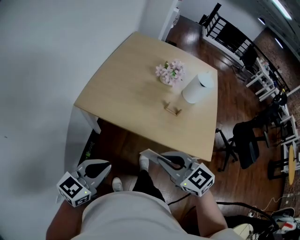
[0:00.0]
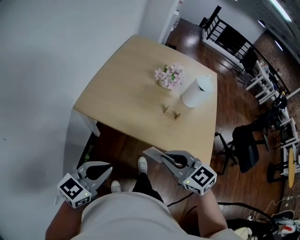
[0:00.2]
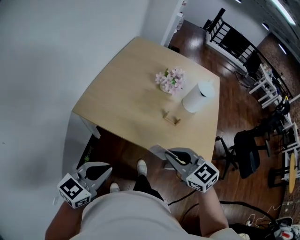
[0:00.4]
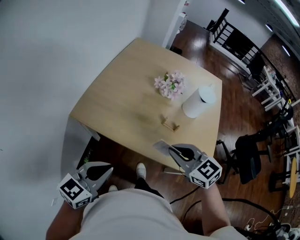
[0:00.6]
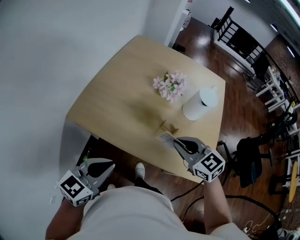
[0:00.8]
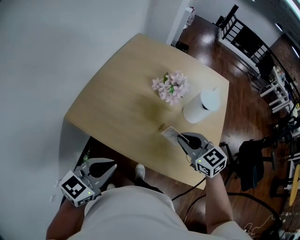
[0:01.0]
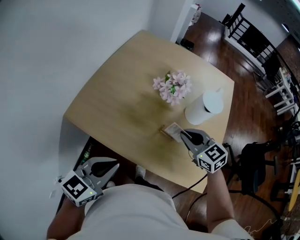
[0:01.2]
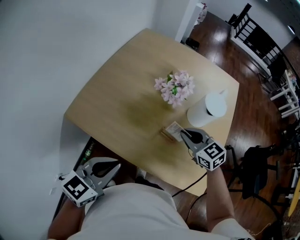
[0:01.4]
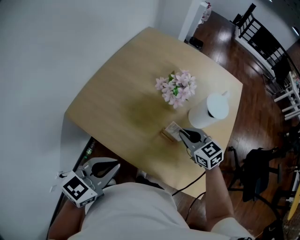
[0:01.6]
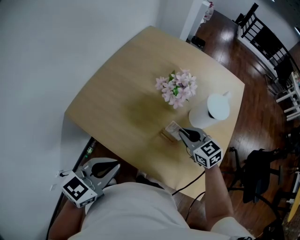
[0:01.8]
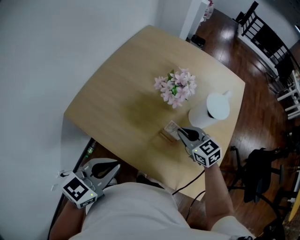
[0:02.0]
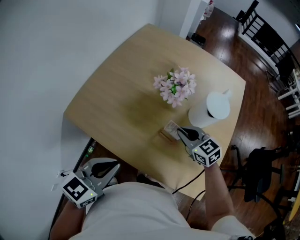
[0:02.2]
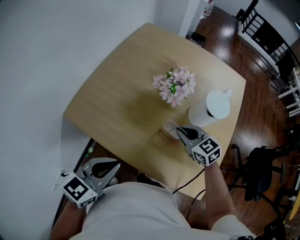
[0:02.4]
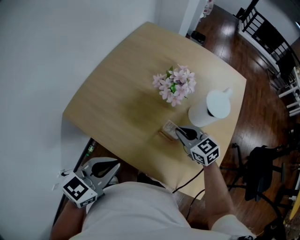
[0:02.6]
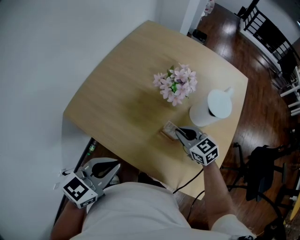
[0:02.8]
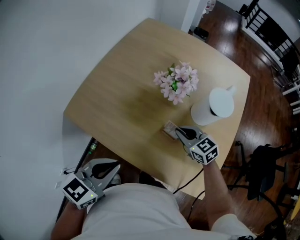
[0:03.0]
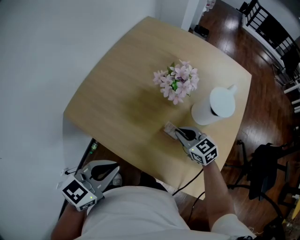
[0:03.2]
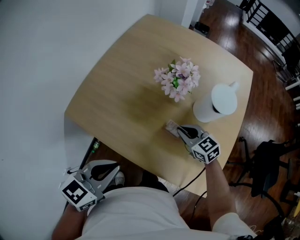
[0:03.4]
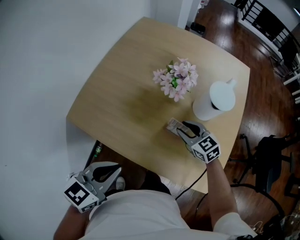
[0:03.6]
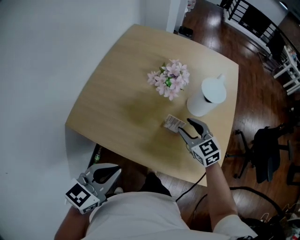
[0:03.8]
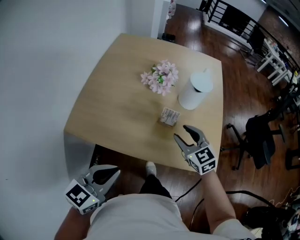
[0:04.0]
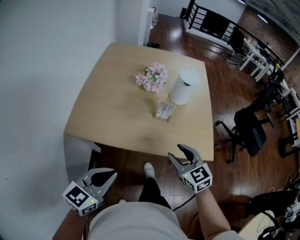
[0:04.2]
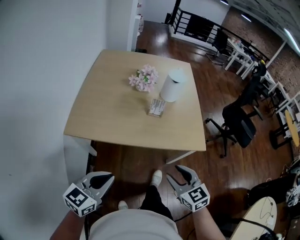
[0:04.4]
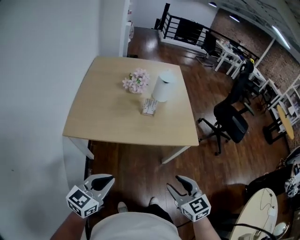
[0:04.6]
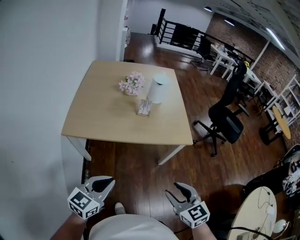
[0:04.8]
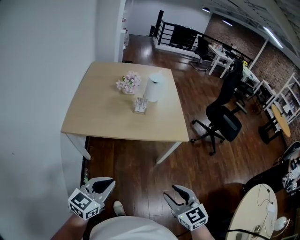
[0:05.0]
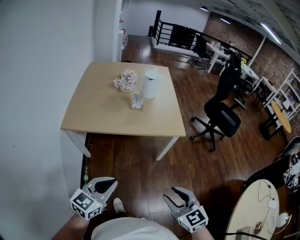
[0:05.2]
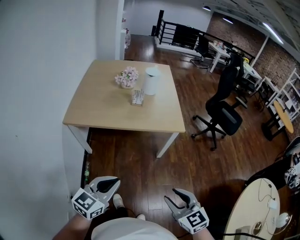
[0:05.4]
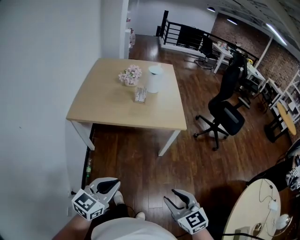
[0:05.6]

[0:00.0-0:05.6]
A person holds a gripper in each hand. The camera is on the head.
0:00.0 to 0:01.4: The left gripper heads forward and to the right, covering roughly 25 cm, while the right gripper shifts approximately 35 cm forward and to the right.
0:01.4 to 0:02.8: The right gripper travels downward by approximately 5 cm.
0:02.8 to 0:04.2: The left gripper moves some 20 cm. The right gripper shifts by approximately 30 cm, turns by roughly 30 degrees, and opens up.
0:04.2 to 0:05.6: The right gripper shifts roughly 50 cm backward; the left gripper heads backward and to the right, covering some 30 cm.

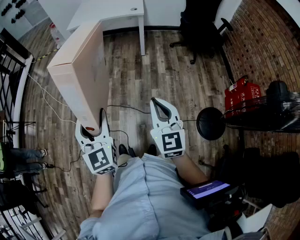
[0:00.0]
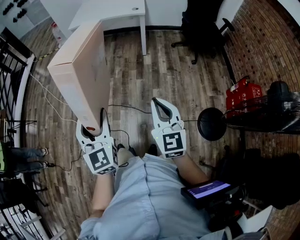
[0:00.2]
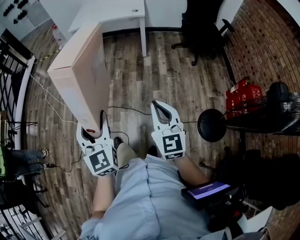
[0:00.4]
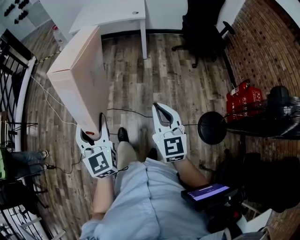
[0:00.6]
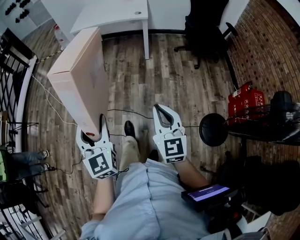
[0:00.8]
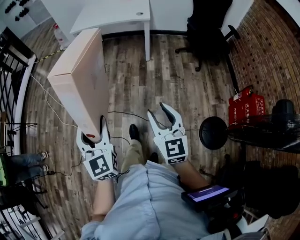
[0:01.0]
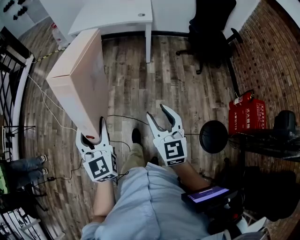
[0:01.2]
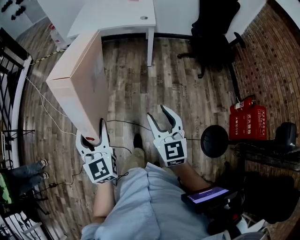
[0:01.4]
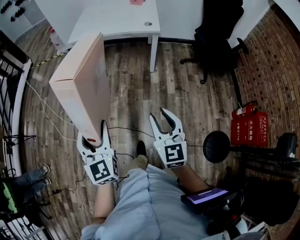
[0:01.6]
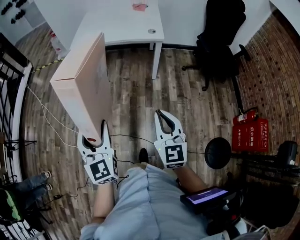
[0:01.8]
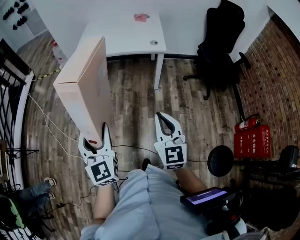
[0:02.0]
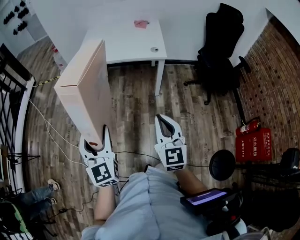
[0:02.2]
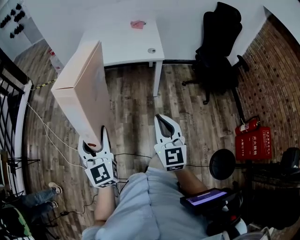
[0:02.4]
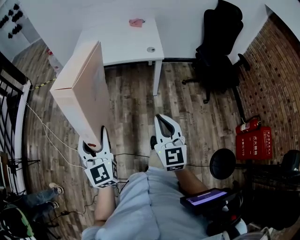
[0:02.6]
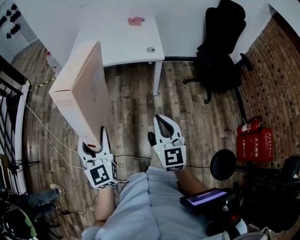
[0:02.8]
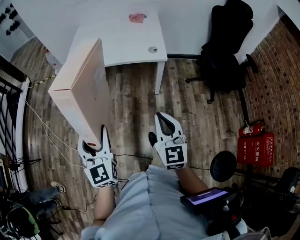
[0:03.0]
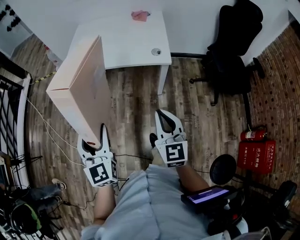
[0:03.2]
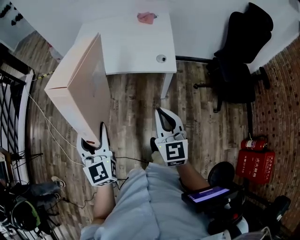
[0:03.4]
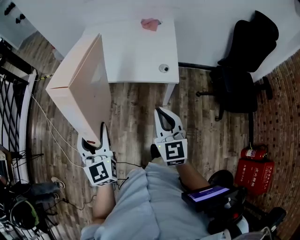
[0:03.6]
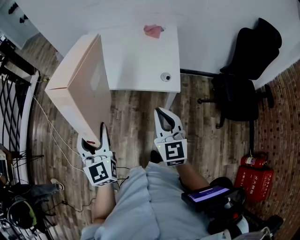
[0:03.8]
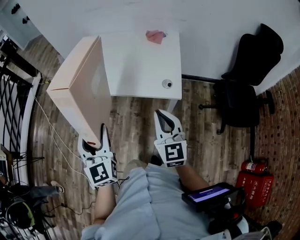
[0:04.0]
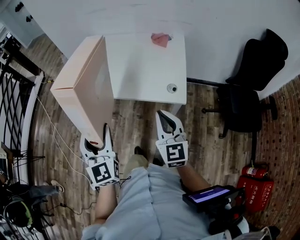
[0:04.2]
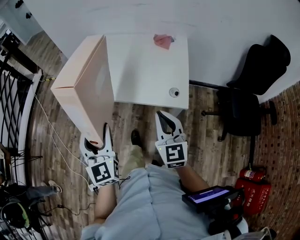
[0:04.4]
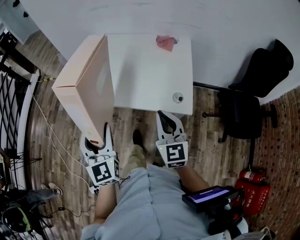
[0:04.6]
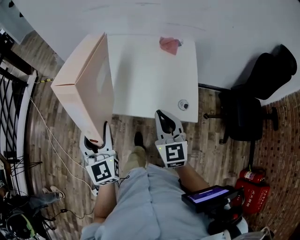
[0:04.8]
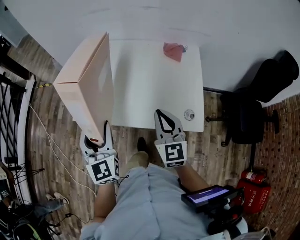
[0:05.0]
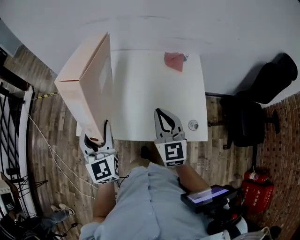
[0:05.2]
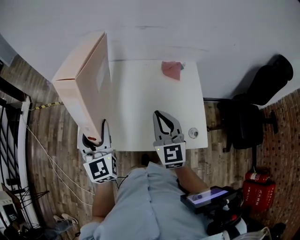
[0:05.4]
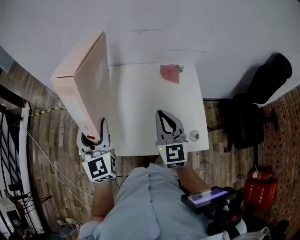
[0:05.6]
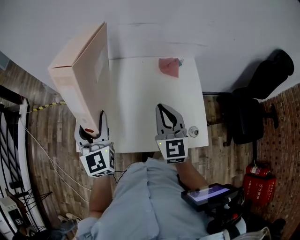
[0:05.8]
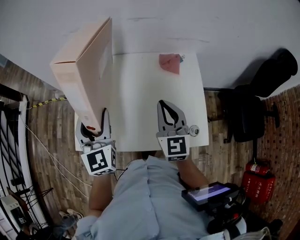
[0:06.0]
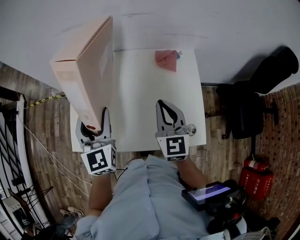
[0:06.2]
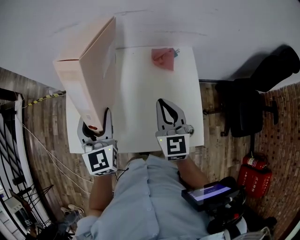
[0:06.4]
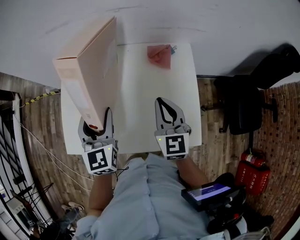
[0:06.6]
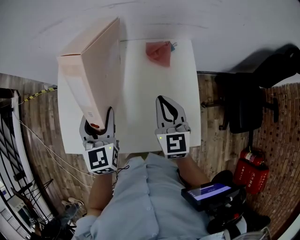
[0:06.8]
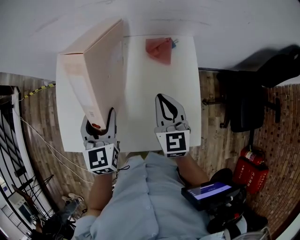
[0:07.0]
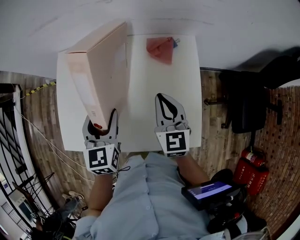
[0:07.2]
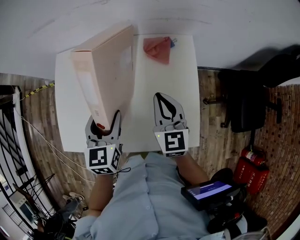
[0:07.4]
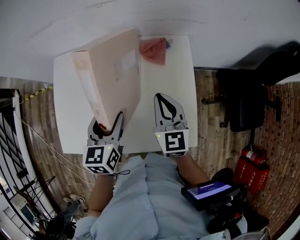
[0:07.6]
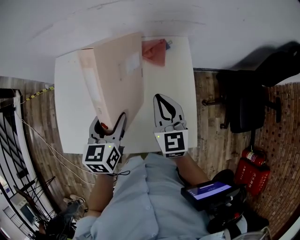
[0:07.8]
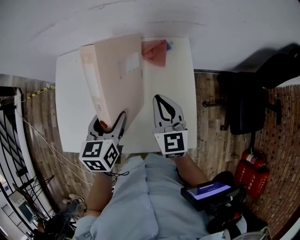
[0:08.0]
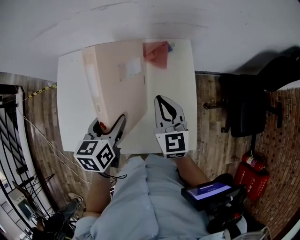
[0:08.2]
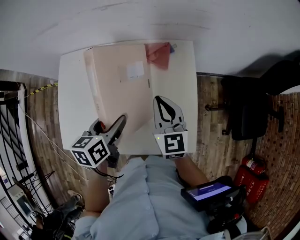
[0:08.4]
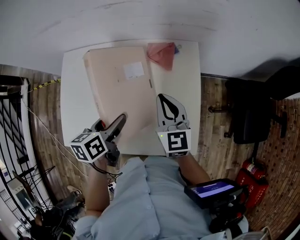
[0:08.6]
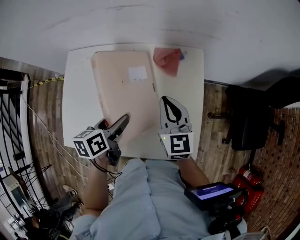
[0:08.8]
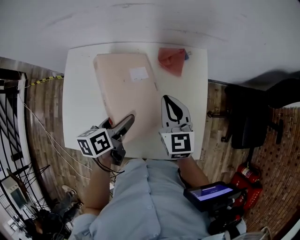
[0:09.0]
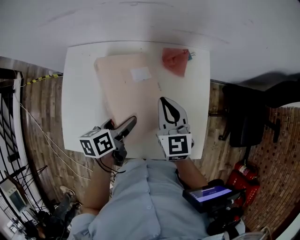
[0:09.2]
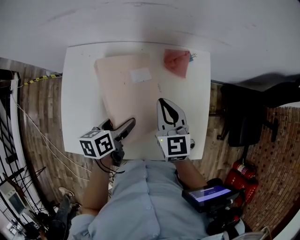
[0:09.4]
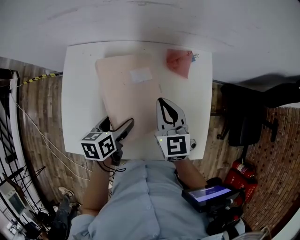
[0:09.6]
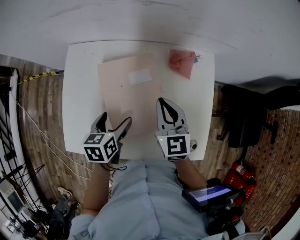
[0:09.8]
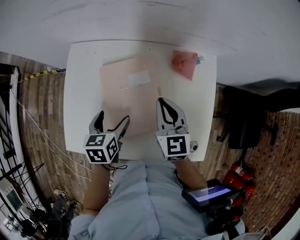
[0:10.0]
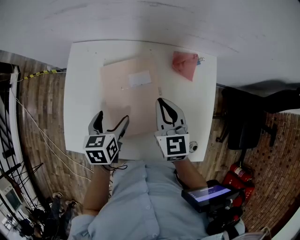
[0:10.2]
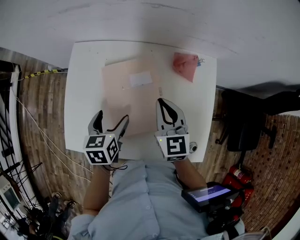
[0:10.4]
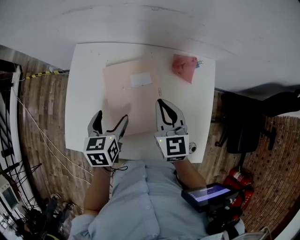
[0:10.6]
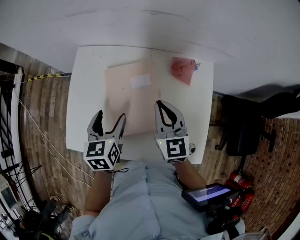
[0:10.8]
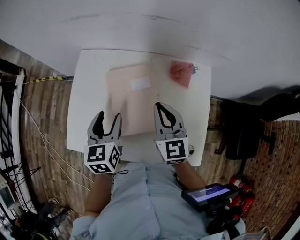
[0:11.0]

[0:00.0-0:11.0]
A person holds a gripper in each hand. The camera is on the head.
0:00.0 to 0:01.6: The two grippers go about 25 cm forward. The right gripper opens.
0:01.6 to 0:03.2: Both grippers travel together forward, roughly 35 cm. The right gripper closes.
0:03.2 to 0:04.8: Both grippers move forward, roughly 35 cm.
0:04.8 to 0:06.2: Both grippers travel together forward, about 25 cm.
0:06.2 to 0:07.8: The left gripper shifts approximately 20 cm to the right and downward, and swivels about 40 degrees; the right gripper moves to the right, downward and forward, roughly 10 cm.
0:07.8 to 0:09.4: The right gripper shifts some 10 cm to the left; the left gripper shifts about 10 cm downward and to the left, and rotates approximately 30 degrees.
0:09.4 to 0:11.0: The right gripper moves approximately 5 cm. The left gripper moves upward and to the left, some 10 cm, and turns by roughly 40 degrees.

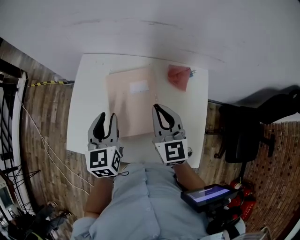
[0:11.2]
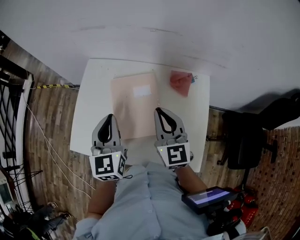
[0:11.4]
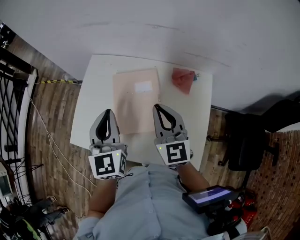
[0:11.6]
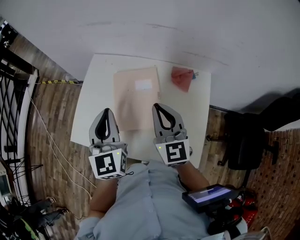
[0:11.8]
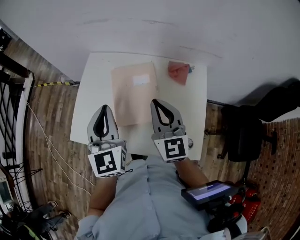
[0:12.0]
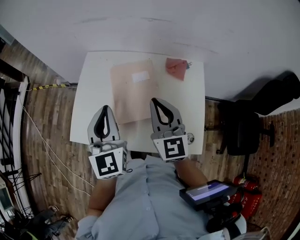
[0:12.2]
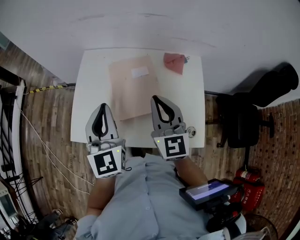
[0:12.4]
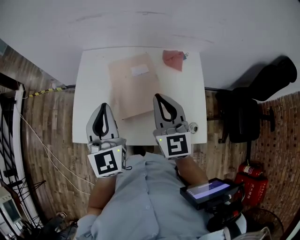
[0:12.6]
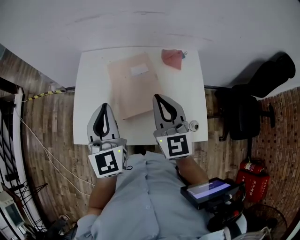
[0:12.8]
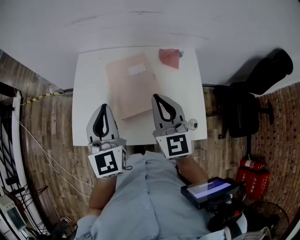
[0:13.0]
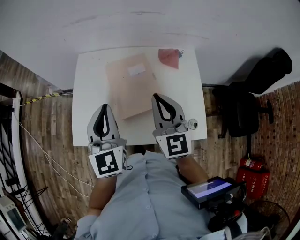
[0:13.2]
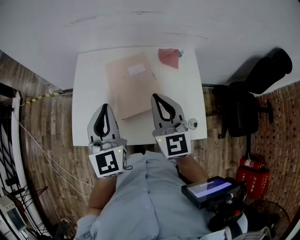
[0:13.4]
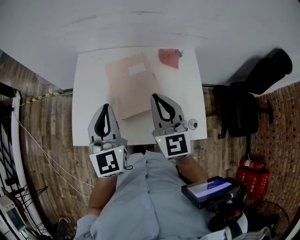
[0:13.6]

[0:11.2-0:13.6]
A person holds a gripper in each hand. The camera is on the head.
0:11.2 to 0:12.4: The left gripper goes about 10 cm upward and backward, and rotates approximately 20 degrees; the right gripper is displaced backward and upward by approximately 10 cm.
0:12.4 to 0:13.6: The grippers move only a little.

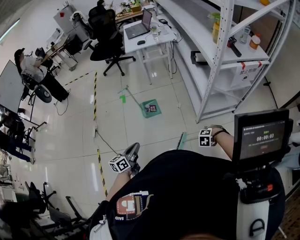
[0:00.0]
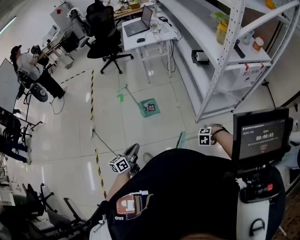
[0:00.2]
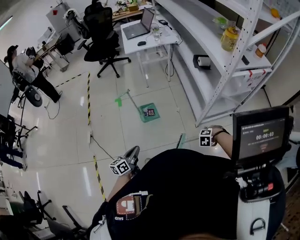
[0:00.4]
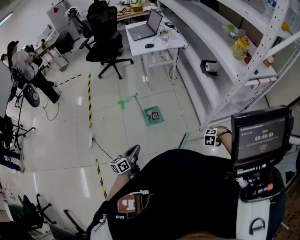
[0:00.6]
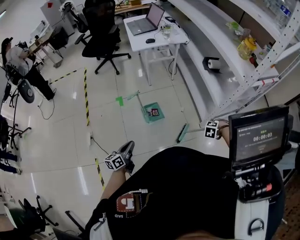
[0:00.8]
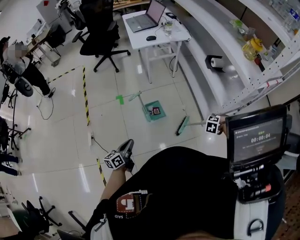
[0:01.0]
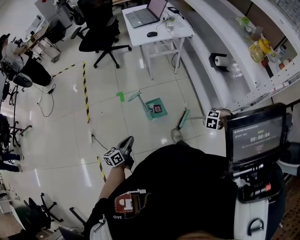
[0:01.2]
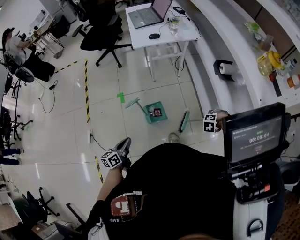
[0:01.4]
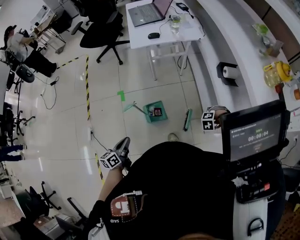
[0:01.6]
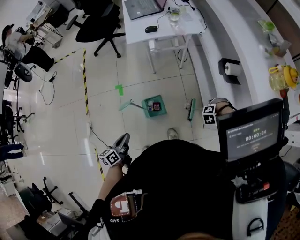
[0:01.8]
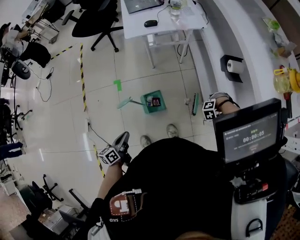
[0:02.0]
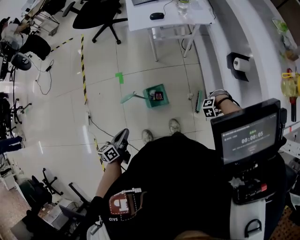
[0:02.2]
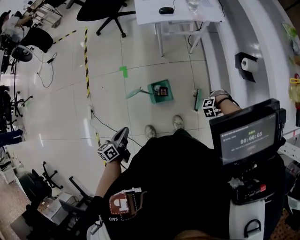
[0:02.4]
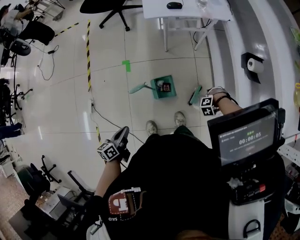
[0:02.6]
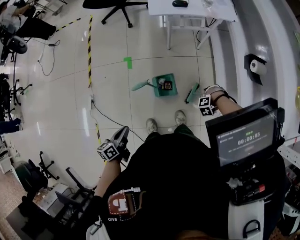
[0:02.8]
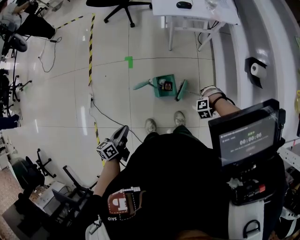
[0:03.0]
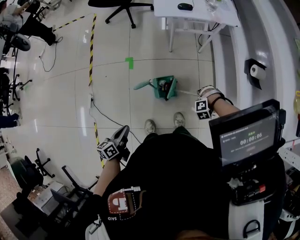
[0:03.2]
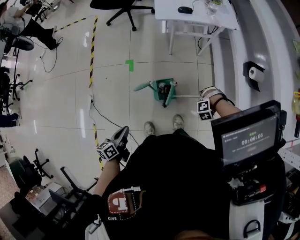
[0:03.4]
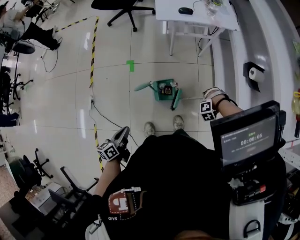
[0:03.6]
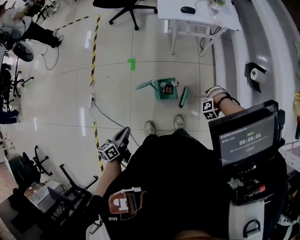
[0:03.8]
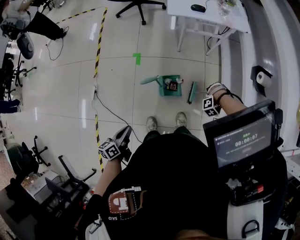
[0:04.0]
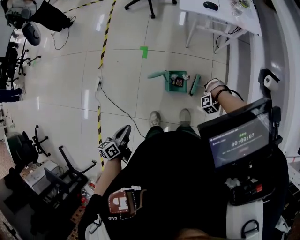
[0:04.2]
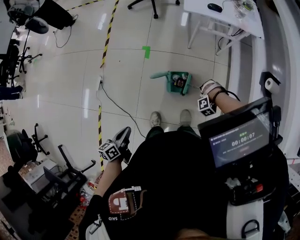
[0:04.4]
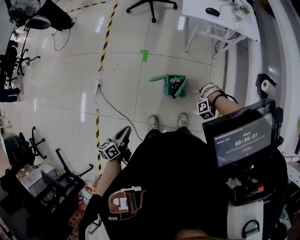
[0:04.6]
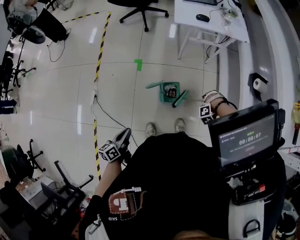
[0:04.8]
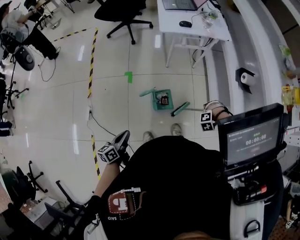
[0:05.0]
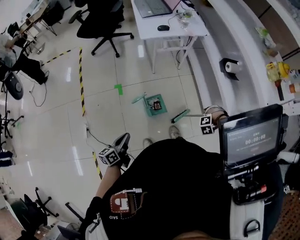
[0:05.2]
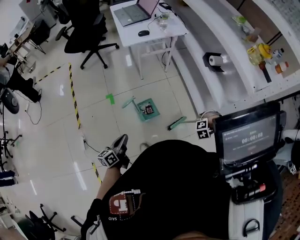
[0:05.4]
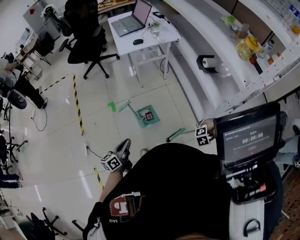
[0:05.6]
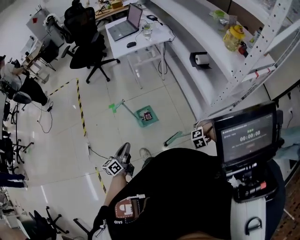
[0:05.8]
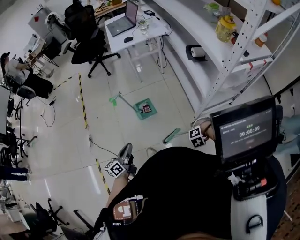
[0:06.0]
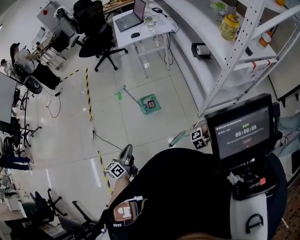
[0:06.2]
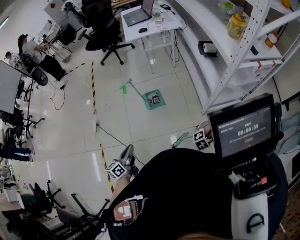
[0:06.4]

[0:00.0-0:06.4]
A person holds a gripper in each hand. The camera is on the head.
0:00.0 to 0:01.6: The left gripper moves approximately 40 cm.
0:01.6 to 0:03.2: The left gripper moves about 10 cm.
0:03.2 to 0:04.8: The left gripper shifts by roughly 5 cm.
0:04.8 to 0:06.4: The left gripper ends up roughly 35 cm from where it was.
